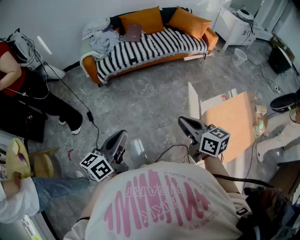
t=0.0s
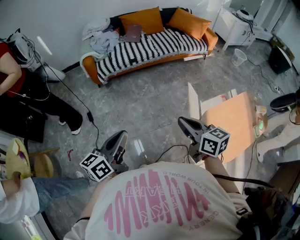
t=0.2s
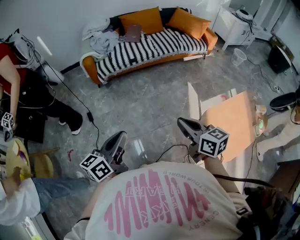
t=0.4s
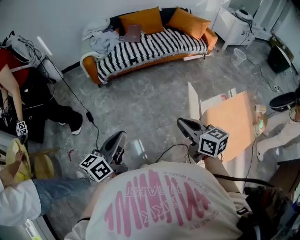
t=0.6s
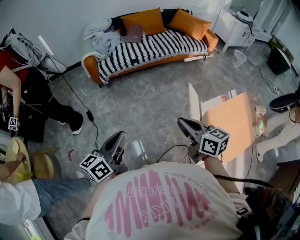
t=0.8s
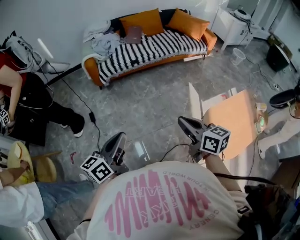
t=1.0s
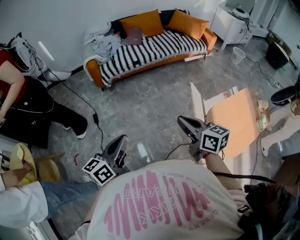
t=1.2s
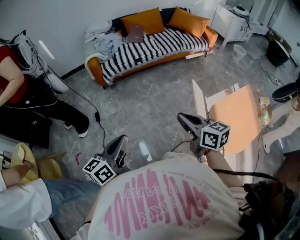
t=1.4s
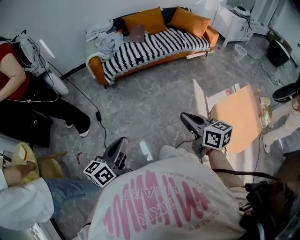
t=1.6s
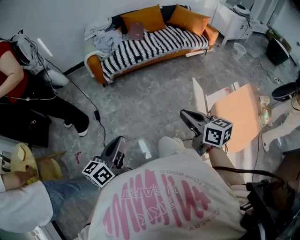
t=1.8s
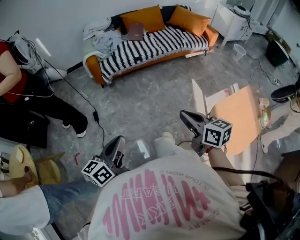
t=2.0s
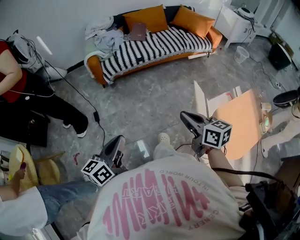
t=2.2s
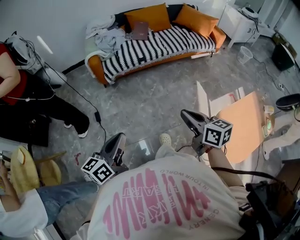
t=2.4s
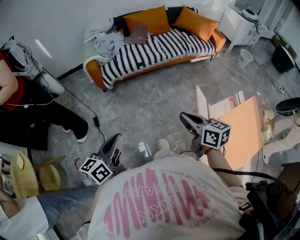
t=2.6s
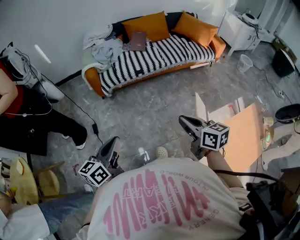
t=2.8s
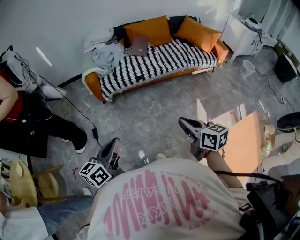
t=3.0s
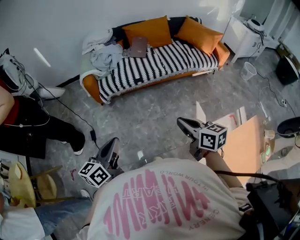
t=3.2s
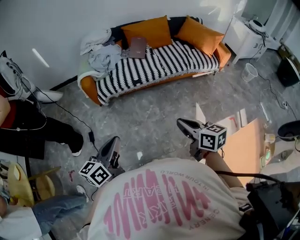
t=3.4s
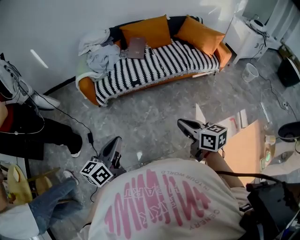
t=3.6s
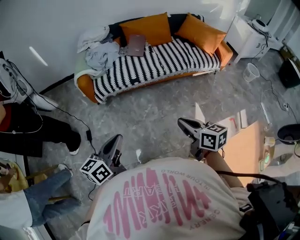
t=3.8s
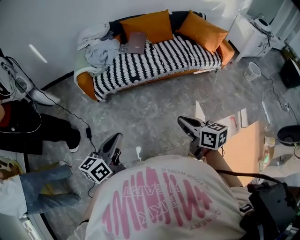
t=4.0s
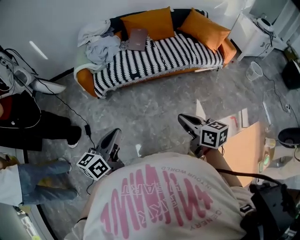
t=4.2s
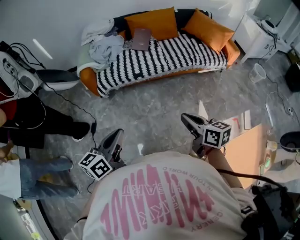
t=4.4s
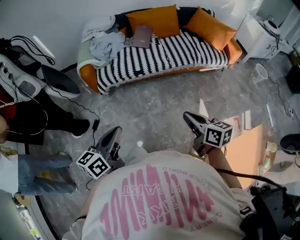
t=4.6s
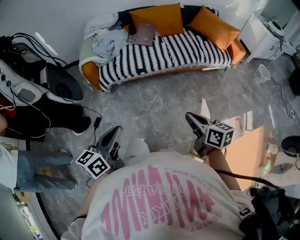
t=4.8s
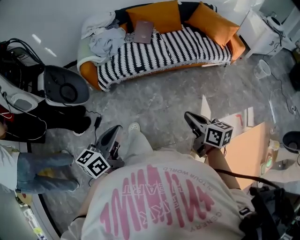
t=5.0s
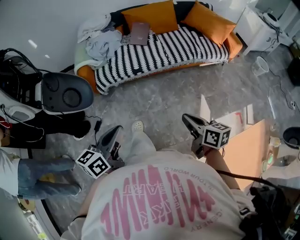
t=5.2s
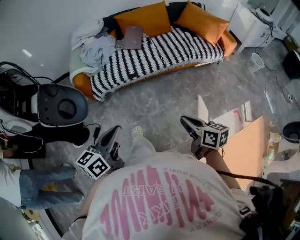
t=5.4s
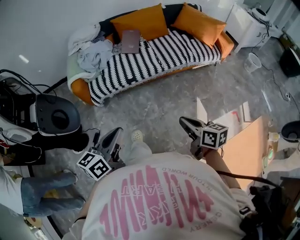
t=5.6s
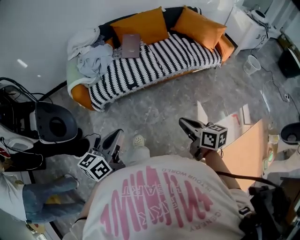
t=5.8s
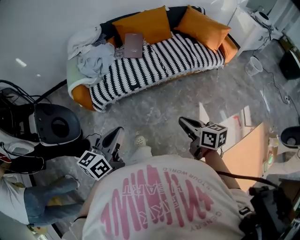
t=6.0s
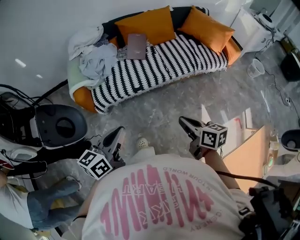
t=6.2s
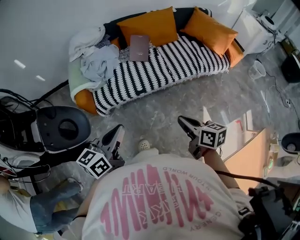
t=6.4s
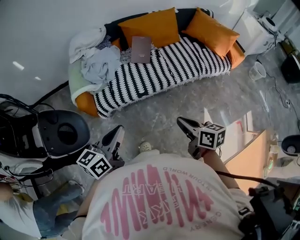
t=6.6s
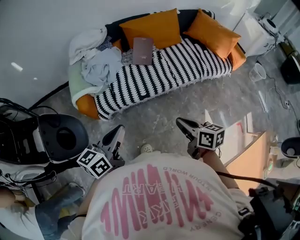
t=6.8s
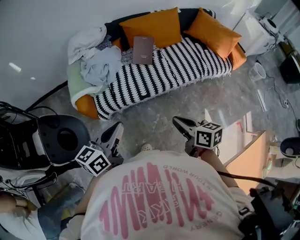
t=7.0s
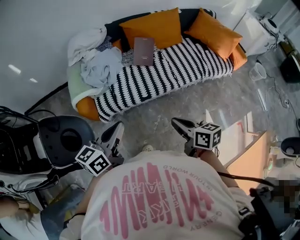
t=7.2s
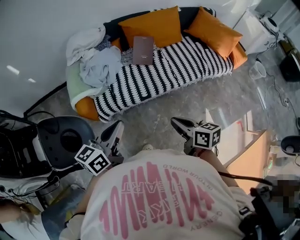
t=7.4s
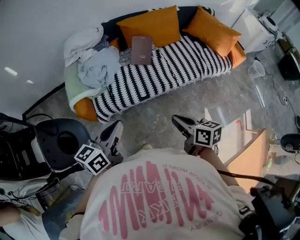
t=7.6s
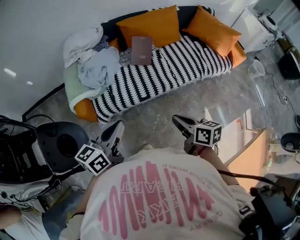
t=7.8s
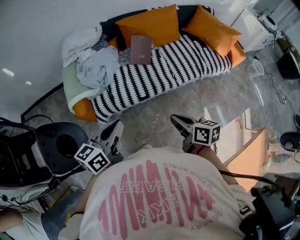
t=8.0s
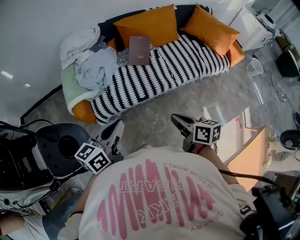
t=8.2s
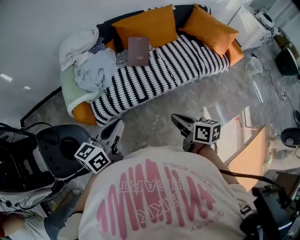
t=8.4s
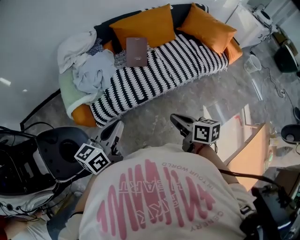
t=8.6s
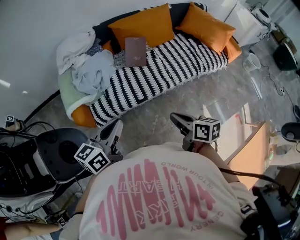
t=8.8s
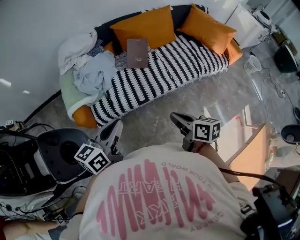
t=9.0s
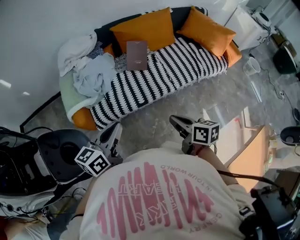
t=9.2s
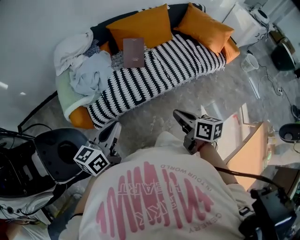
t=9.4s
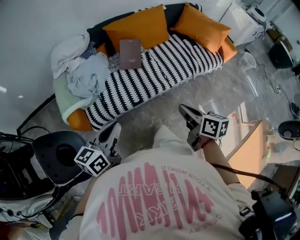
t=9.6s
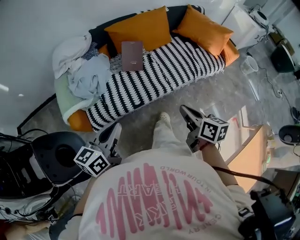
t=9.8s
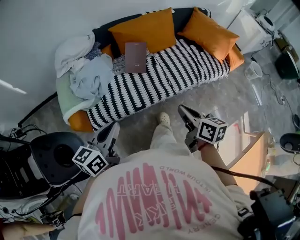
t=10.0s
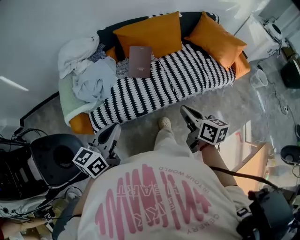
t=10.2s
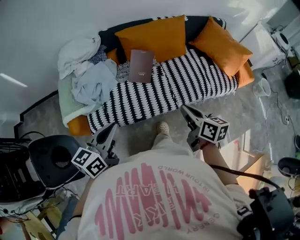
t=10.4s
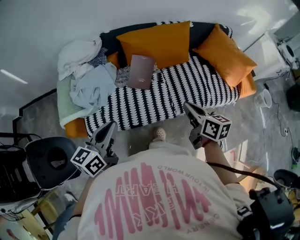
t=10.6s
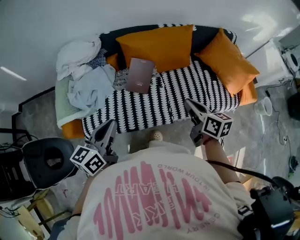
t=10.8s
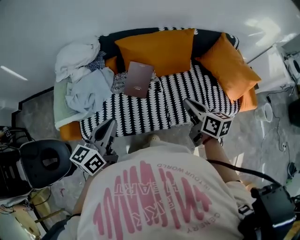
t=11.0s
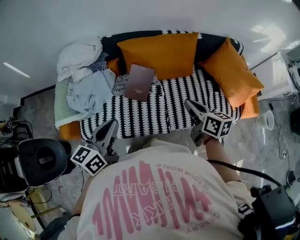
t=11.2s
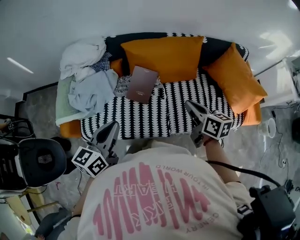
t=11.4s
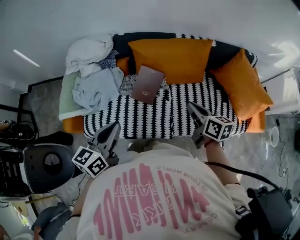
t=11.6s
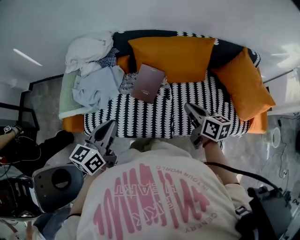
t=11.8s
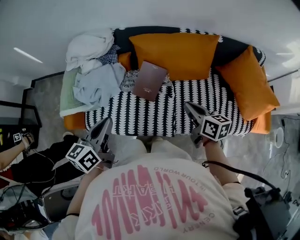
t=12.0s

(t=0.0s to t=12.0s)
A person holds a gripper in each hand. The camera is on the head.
t=0.0s - t=1.6s: The grippers both shift to the left by approximately 10 cm.
t=1.6s - t=3.0s: The grippers both shift forward by about 20 cm.
t=3.0s - t=4.4s: The right gripper travels forward and to the right by some 10 cm, while the left gripper goes some 15 cm to the right and forward.
t=4.4s - t=6.0s: The grippers both shift forward by about 15 cm.
t=6.0s - t=7.6s: Both grippers travel together forward and to the left, some 20 cm.
t=7.6s - t=9.0s: There are only small adjustments of the grippers.
t=9.0s - t=10.4s: The left gripper is displaced forward by roughly 10 cm; the right gripper heads forward and to the right, covering about 20 cm.
t=10.4s - t=12.0s: The left gripper goes roughly 15 cm forward and to the right, and rotates about 20 degrees; the right gripper shifts about 20 cm forward and to the right, and changes its angle by about 20 degrees.

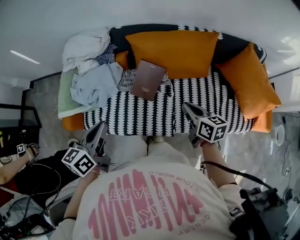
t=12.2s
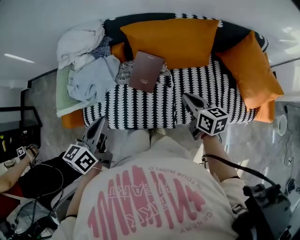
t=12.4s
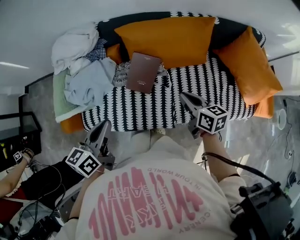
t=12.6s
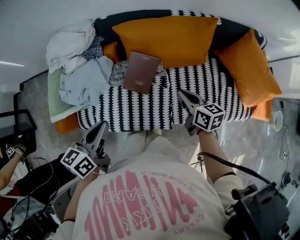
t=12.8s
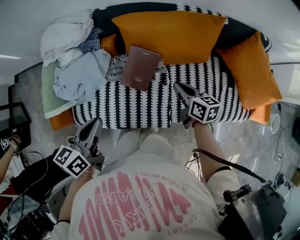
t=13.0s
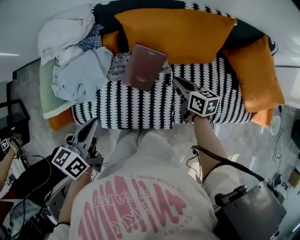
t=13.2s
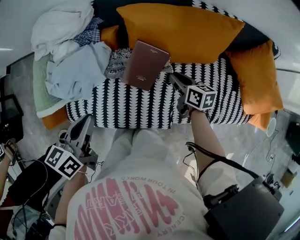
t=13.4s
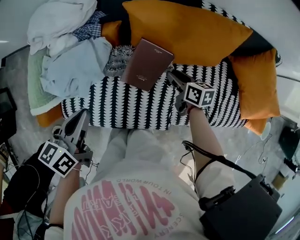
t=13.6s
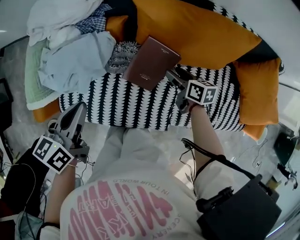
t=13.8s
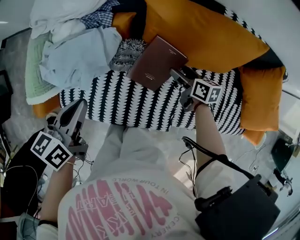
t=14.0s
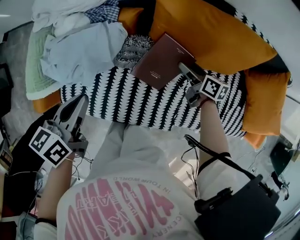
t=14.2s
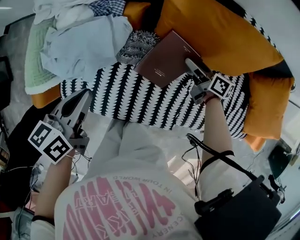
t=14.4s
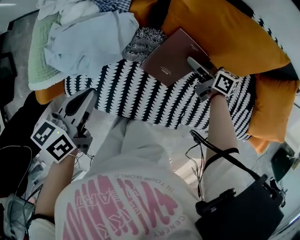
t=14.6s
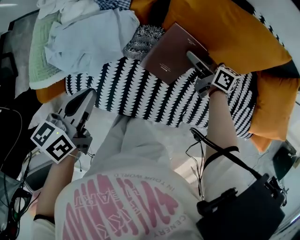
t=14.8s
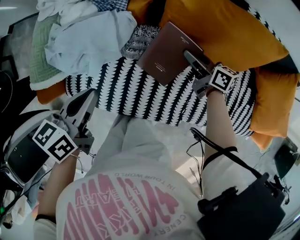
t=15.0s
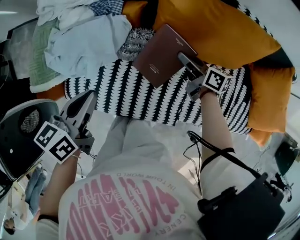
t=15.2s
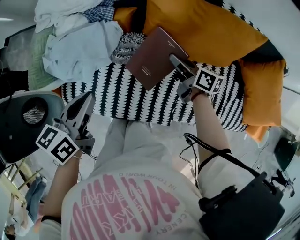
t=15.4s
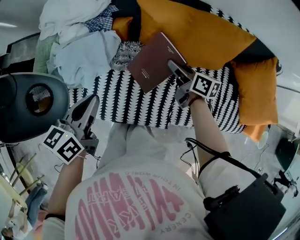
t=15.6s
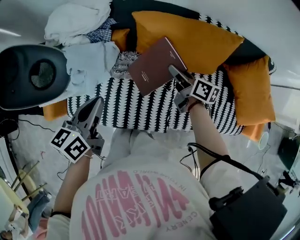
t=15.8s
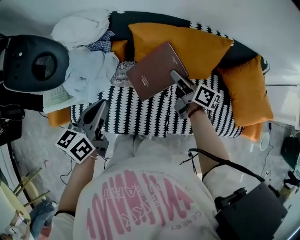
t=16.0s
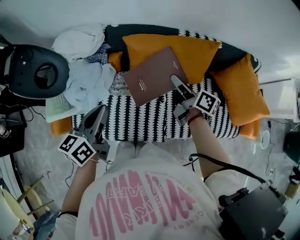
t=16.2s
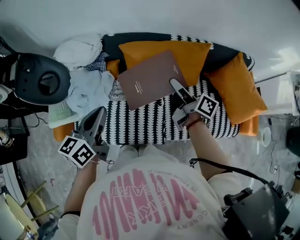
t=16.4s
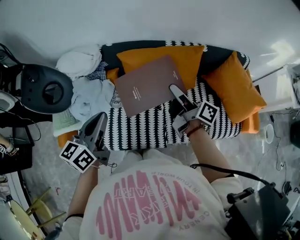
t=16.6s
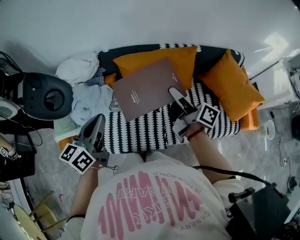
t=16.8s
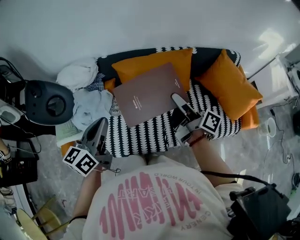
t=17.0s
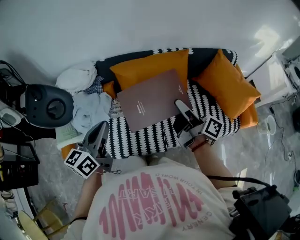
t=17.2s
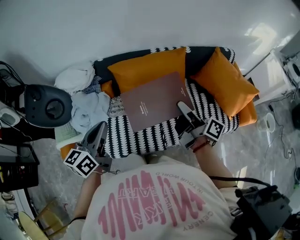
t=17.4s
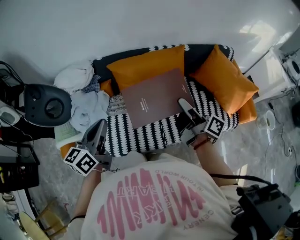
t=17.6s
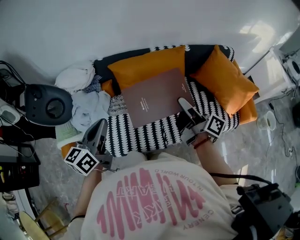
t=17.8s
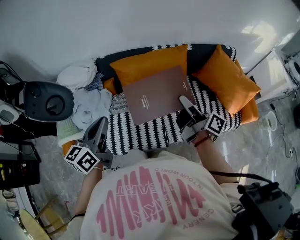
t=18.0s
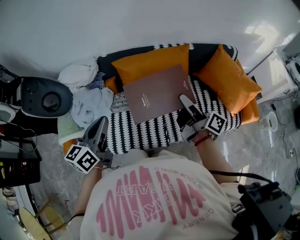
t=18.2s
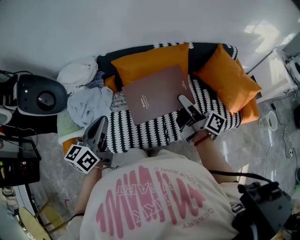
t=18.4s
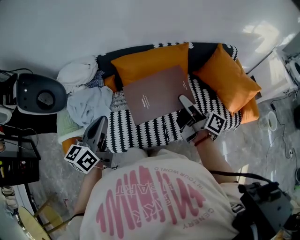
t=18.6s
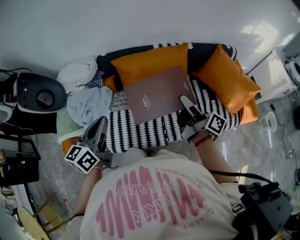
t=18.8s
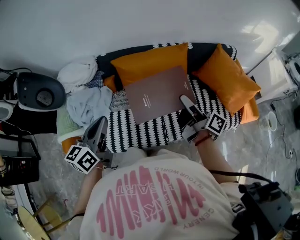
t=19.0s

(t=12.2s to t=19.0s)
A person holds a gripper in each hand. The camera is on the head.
t=12.2s - t=13.6s: The left gripper is displaced forward and downward by about 15 cm, while the right gripper is displaced downward and forward by roughly 20 cm.
t=13.6s - t=15.0s: The right gripper travels forward by approximately 5 cm, and opens, then closes again.
t=15.0s - t=16.2s: The left gripper goes some 15 cm upward and to the right, and rotates approximately 20 degrees. The right gripper heads upward, covering roughly 20 cm, and changes its angle by roughly 30 degrees.
t=16.2s - t=17.6s: The right gripper travels backward, upward and to the right by approximately 20 cm, and rotates some 30 degrees. Meanwhile the left gripper heads upward, covering some 5 cm.
t=17.6s - t=19.0s: The grippers move only a little.

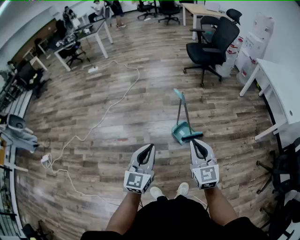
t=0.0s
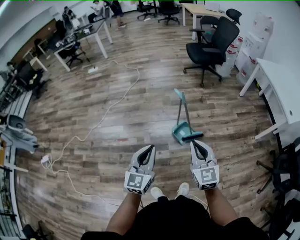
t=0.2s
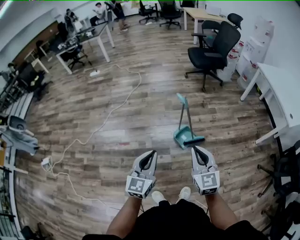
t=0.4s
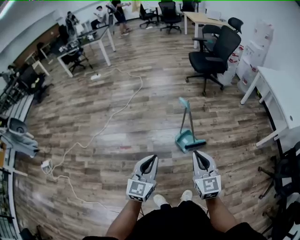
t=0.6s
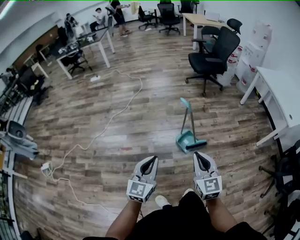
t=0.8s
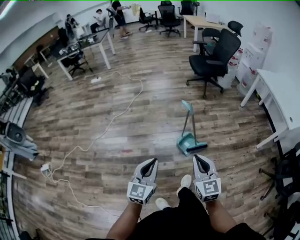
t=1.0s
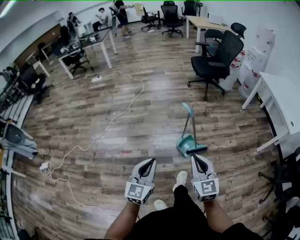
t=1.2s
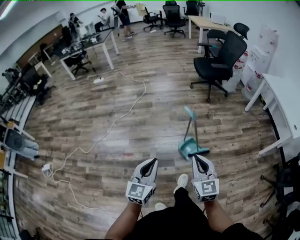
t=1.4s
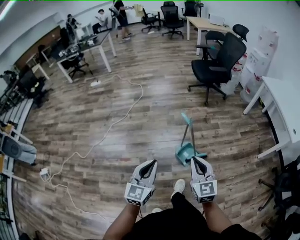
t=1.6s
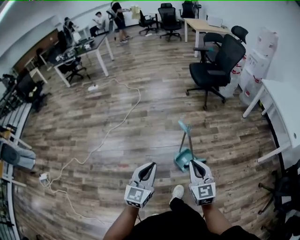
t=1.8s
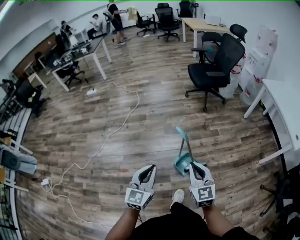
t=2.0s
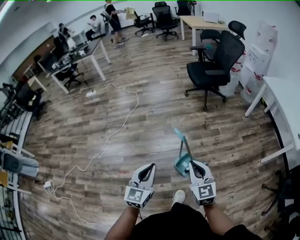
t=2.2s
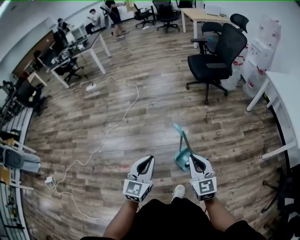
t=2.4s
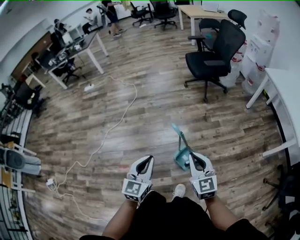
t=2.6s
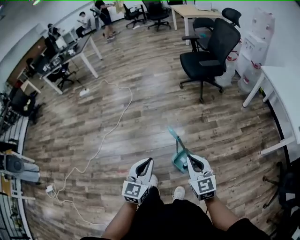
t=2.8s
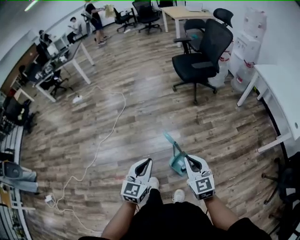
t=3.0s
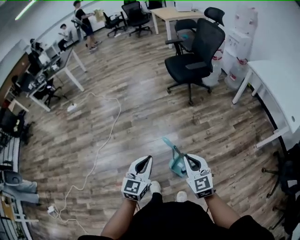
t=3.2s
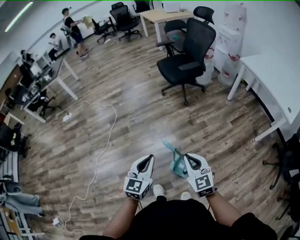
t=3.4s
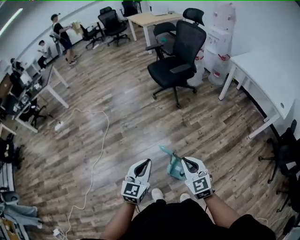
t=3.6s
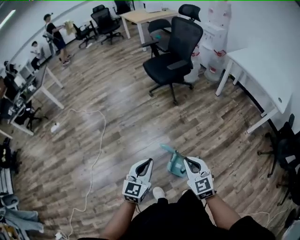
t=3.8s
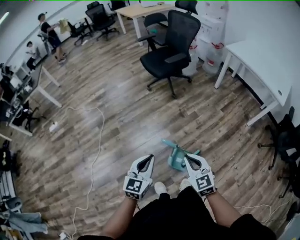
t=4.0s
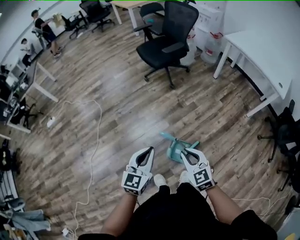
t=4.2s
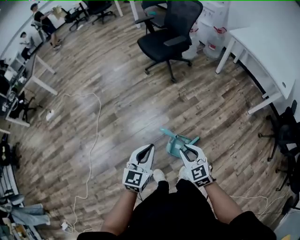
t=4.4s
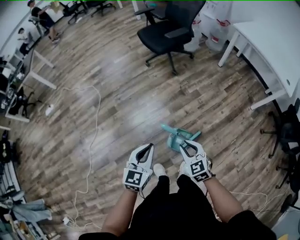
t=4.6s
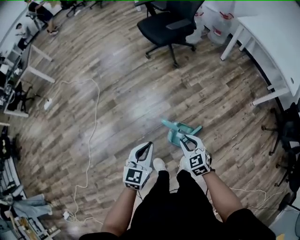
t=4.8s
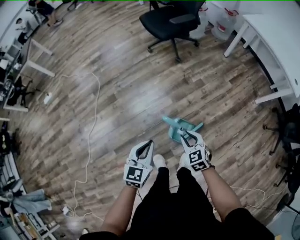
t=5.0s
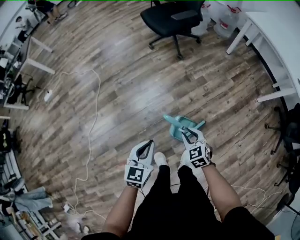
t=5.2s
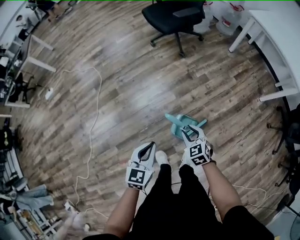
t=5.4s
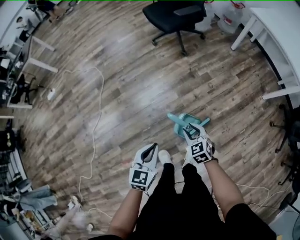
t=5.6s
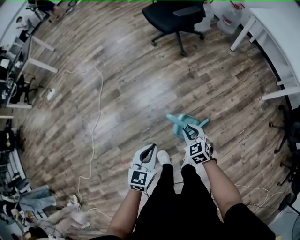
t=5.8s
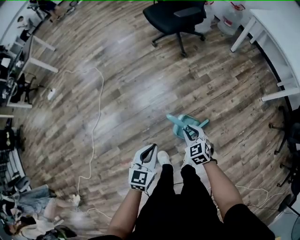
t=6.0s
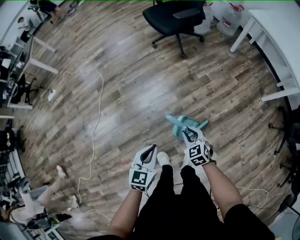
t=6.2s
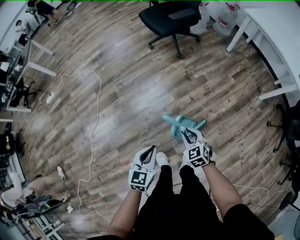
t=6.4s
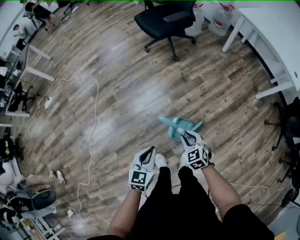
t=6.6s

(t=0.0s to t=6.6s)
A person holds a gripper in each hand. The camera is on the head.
t=0.0s - t=1.6s: The two grippers go about 10 cm forward.
t=1.6s - t=3.2s: The two grippers go roughly 25 cm forward.
t=3.2s - t=5.0s: The left gripper goes approximately 10 cm downward and forward, while the right gripper heads downward, covering some 20 cm, rotates about 20 degrees, and opens up.
t=5.0s - t=6.6s: The left gripper ends up some 5 cm from where it was.
